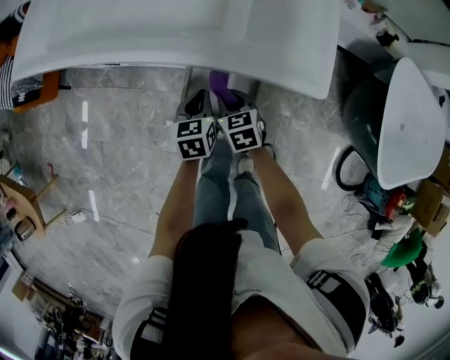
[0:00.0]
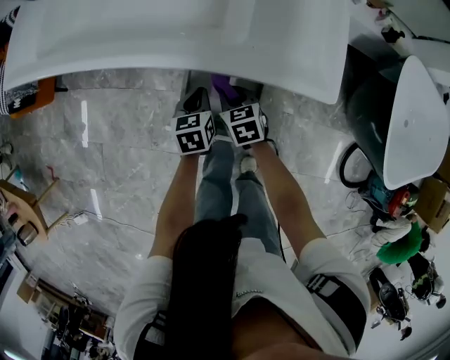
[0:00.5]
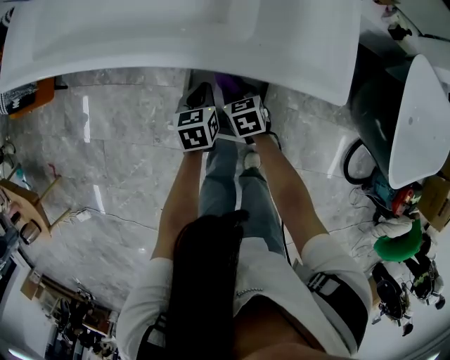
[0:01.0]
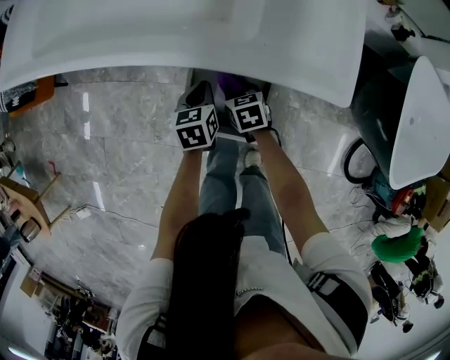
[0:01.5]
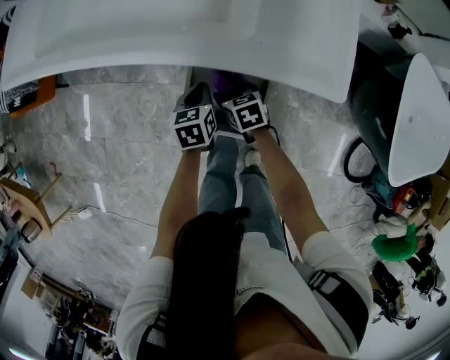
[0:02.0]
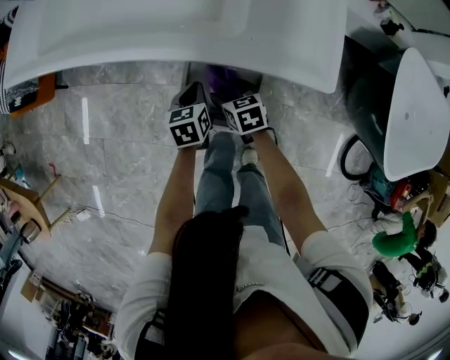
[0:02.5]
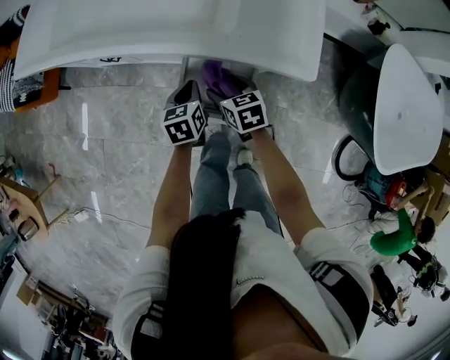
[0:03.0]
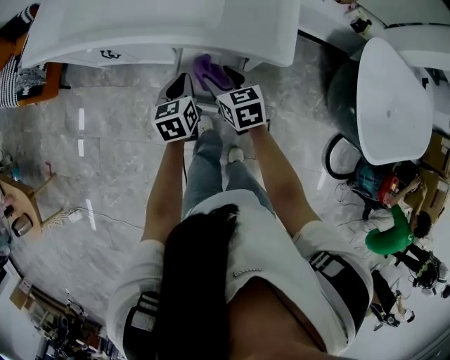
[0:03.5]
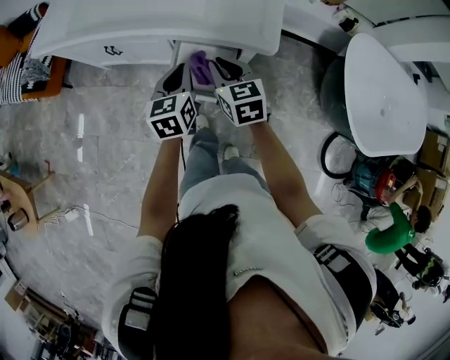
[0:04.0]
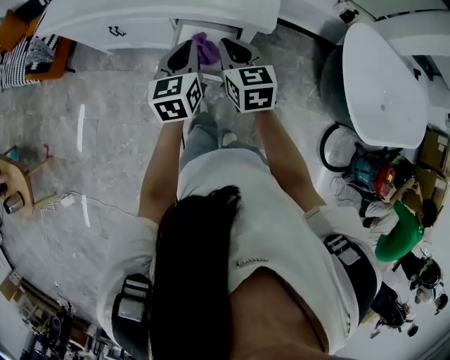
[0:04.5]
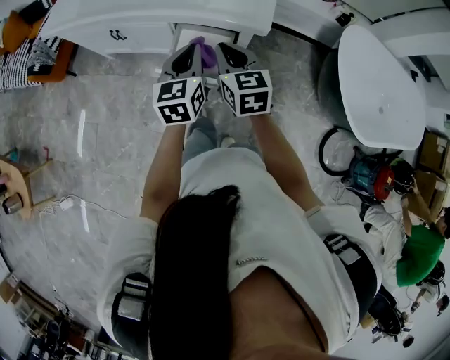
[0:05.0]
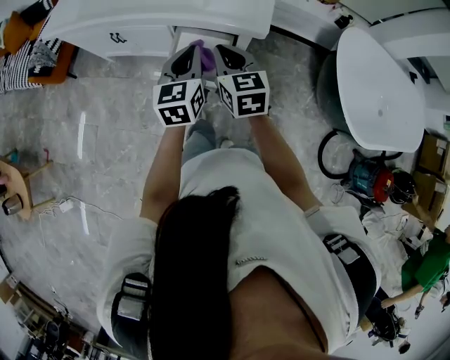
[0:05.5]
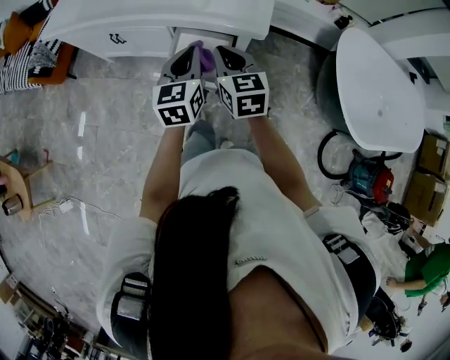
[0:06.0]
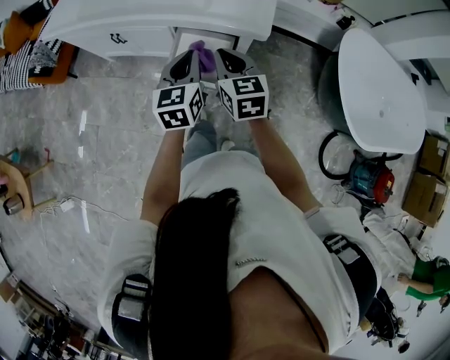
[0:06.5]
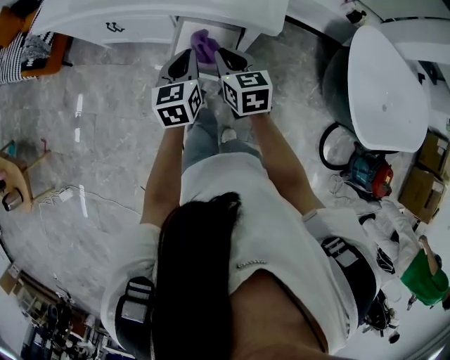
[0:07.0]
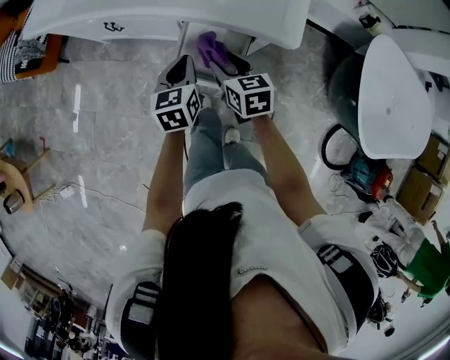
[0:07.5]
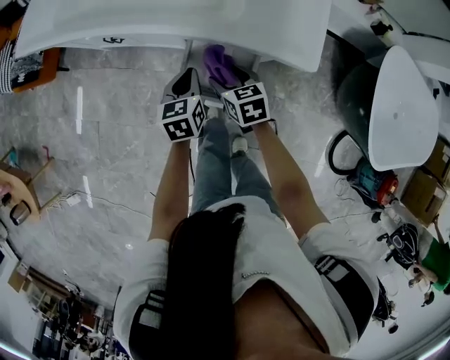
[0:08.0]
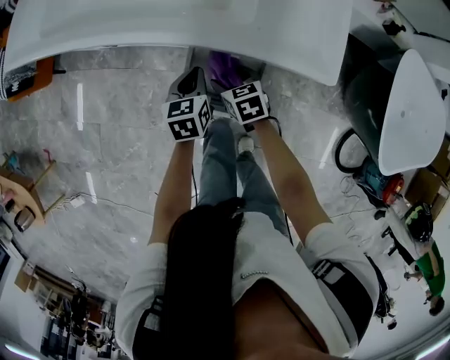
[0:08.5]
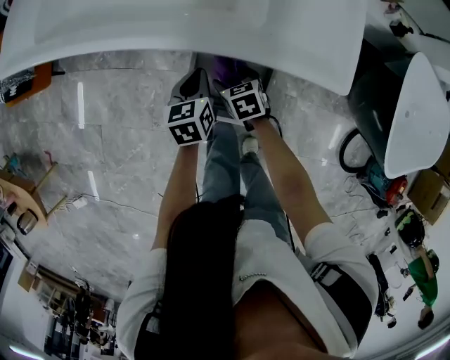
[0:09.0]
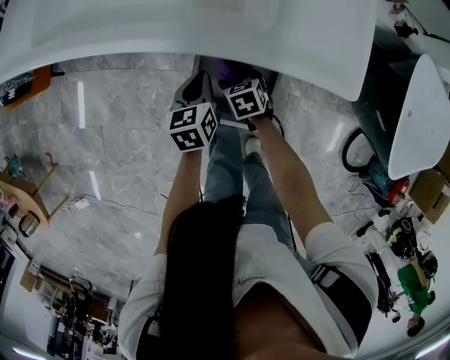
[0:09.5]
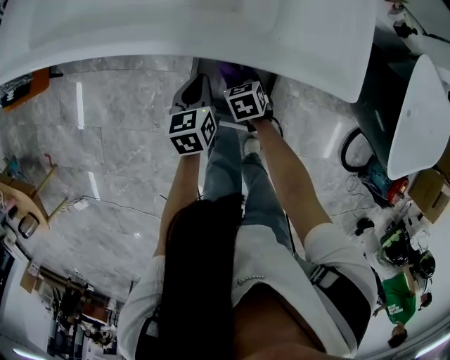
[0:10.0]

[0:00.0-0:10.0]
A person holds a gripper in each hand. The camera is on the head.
0:00.0 to 0:02.0: The two grippers go some 5 cm downward. The right gripper opens.
0:02.0 to 0:04.0: Both grippers move upward, some 30 cm. The left gripper changes its angle by approximately 20 degrees, while the right gripper rotates some 30 degrees, and closes.
0:04.0 to 0:06.0: The grippers both shift upward and backward by some 10 cm.
0:06.0 to 0:08.0: Both grippers move downward and forward, about 25 cm. The right gripper turns by approximately 30 degrees, and opens. The left gripper rotates about 20 degrees.
0:08.0 to 0:10.0: The left gripper goes roughly 10 cm downward; the right gripper shifts approximately 15 cm downward, and closes.

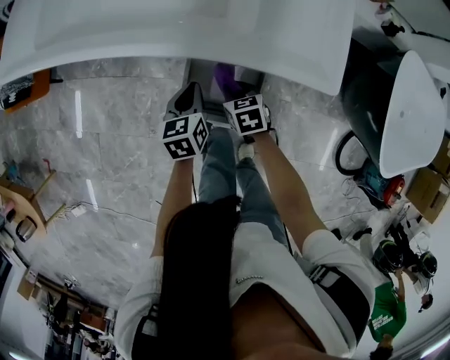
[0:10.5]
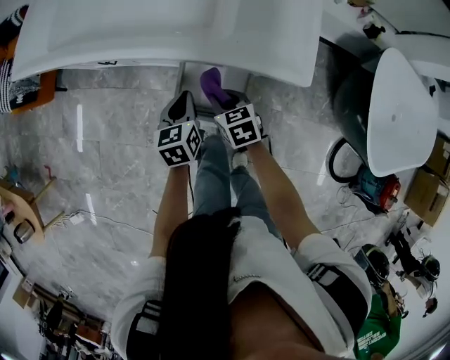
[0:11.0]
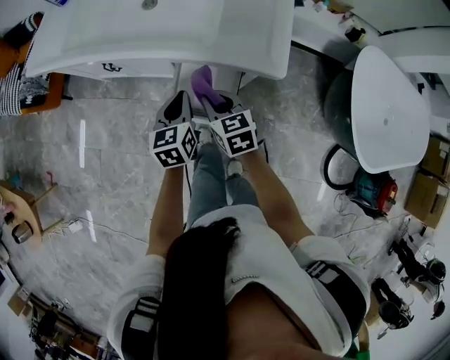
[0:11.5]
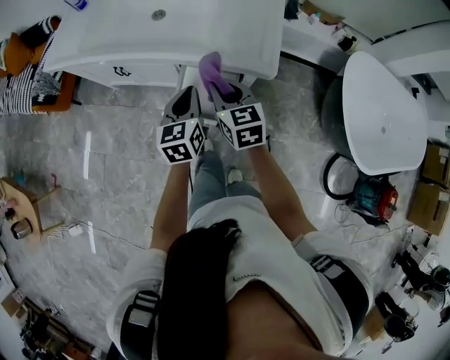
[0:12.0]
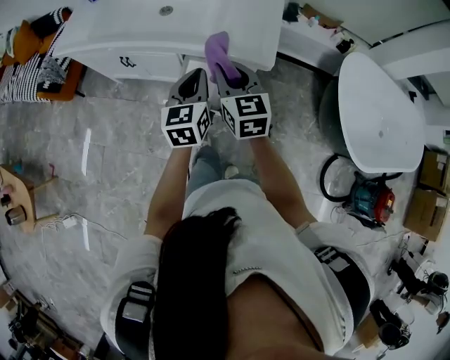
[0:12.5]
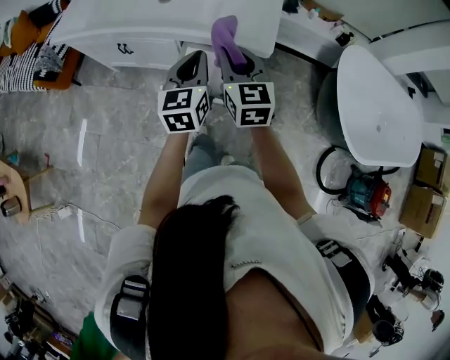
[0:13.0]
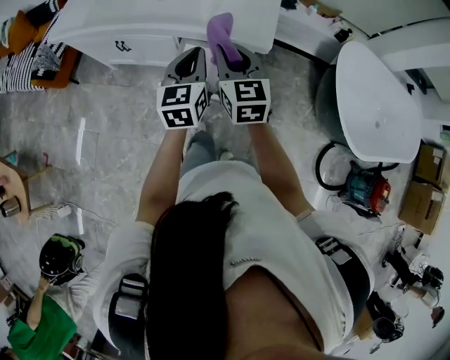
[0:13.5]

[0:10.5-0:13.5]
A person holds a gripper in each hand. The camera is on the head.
0:10.5 to 0:12.0: Both grippers move upward, some 25 cm. The right gripper tilts its fingers roughly 30 degrees upward, while the left gripper turns by roughly 20 degrees.
0:12.0 to 0:13.5: The two grippers go approximately 10 cm upward.

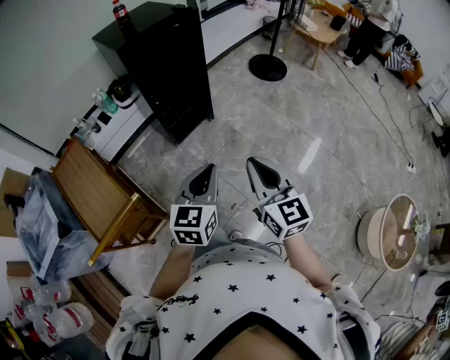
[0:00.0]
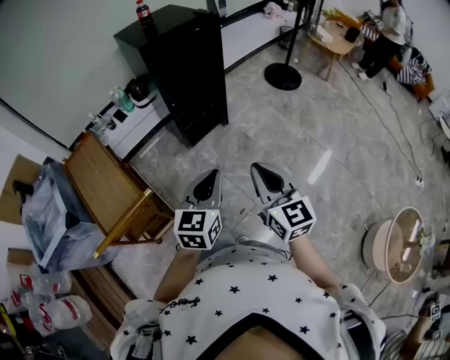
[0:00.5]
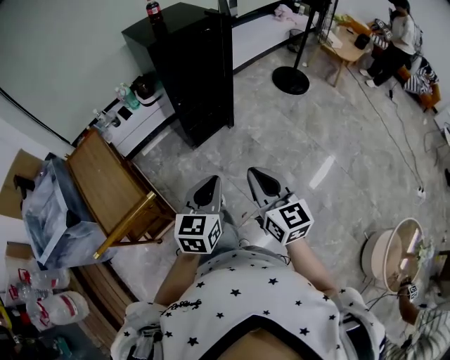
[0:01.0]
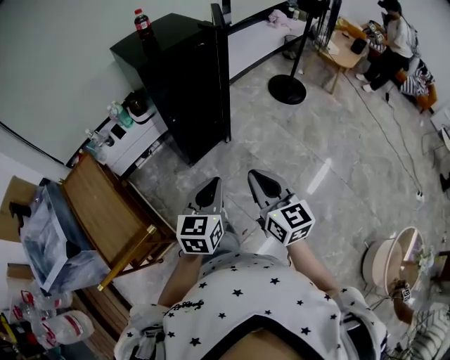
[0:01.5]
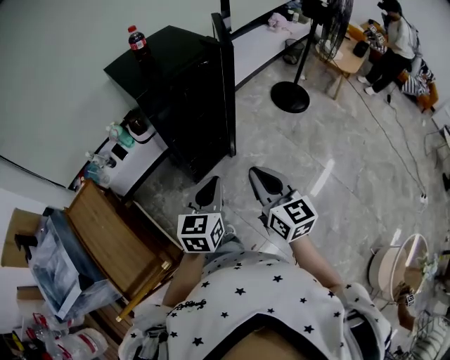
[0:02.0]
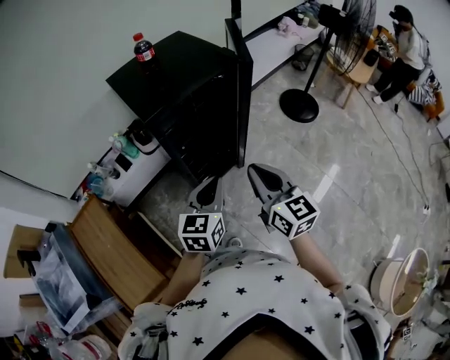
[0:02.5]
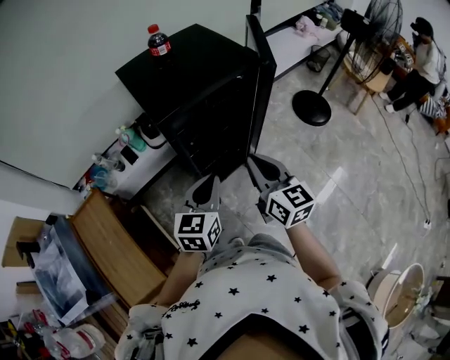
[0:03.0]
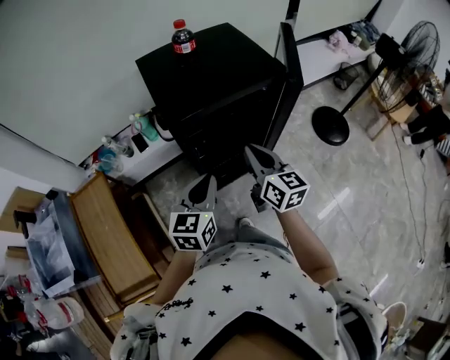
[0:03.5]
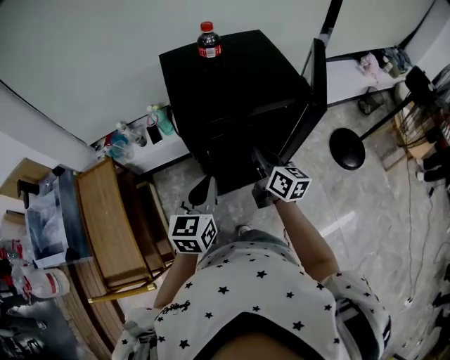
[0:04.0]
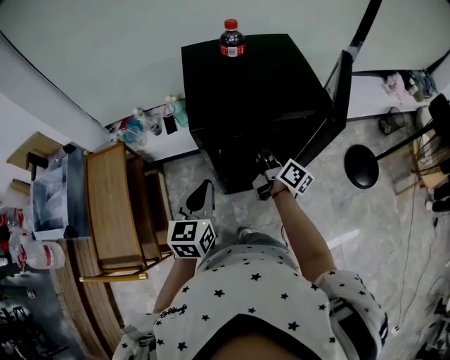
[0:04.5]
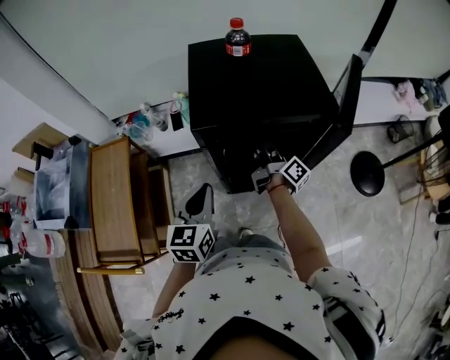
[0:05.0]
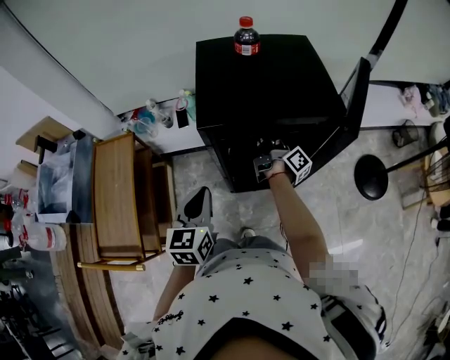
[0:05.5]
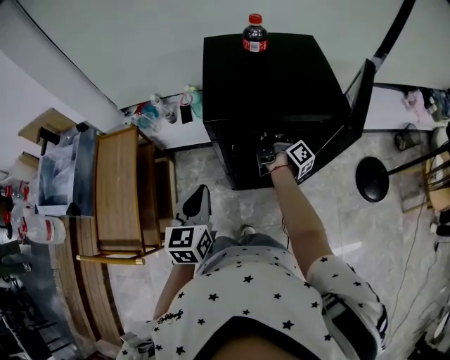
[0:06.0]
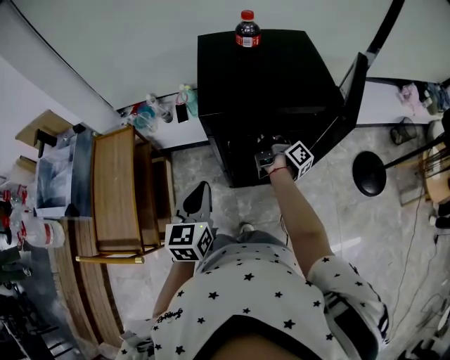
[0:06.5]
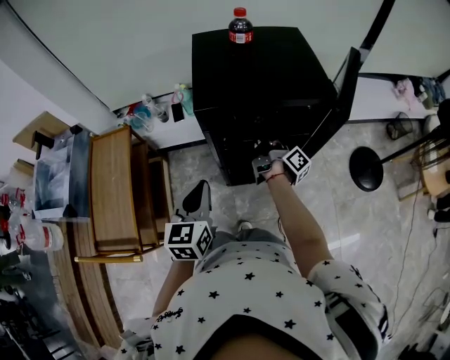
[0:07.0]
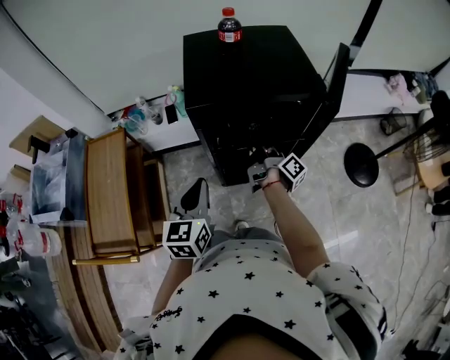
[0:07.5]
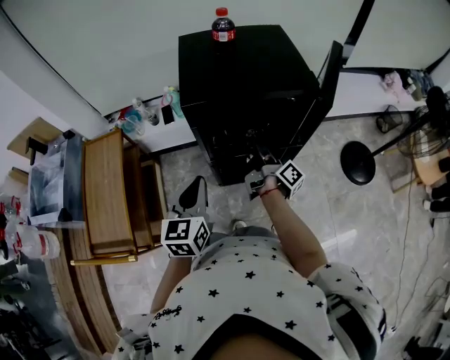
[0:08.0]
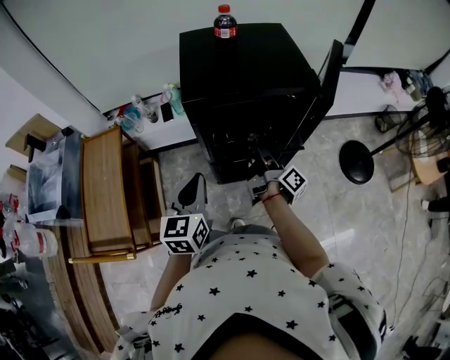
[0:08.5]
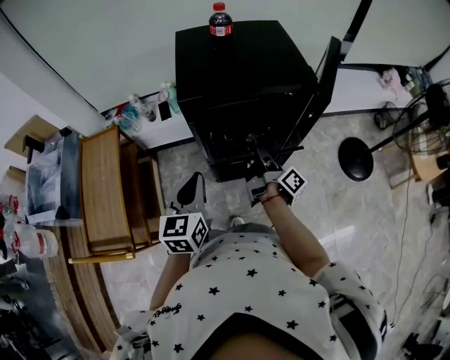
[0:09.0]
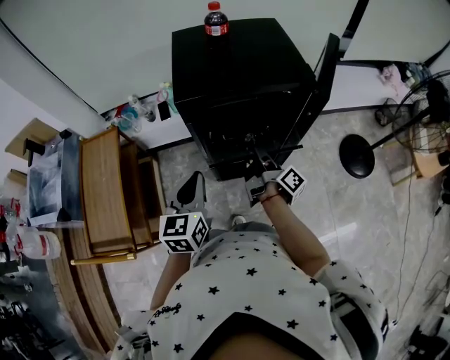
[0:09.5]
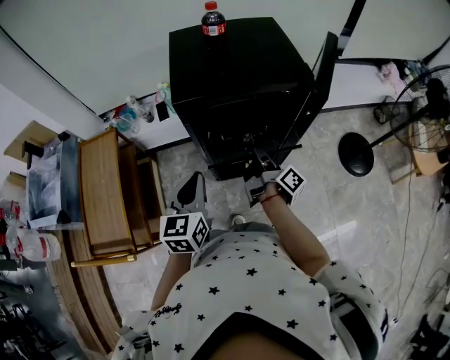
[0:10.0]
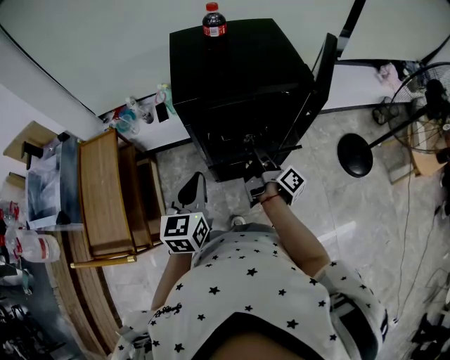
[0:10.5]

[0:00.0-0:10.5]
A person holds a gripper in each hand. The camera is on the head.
0:00.0 to 0:02.0: Both grippers move forward, approximately 25 cm.
0:02.0 to 0:04.0: The right gripper shifts roughly 40 cm forward, and changes its angle by about 30 degrees. Meanwhile the left gripper moves forward, about 25 cm, and changes its angle by about 30 degrees.
0:04.0 to 0:06.5: The right gripper is displaced forward and downward by about 15 cm, and twists about 50 degrees clockwise, seen from behind; the left gripper changes place by roughly 5 cm.
0:06.5 to 0:08.5: The right gripper is displaced backward by about 15 cm.
0:08.5 to 0:10.5: The grippers make only small movements.

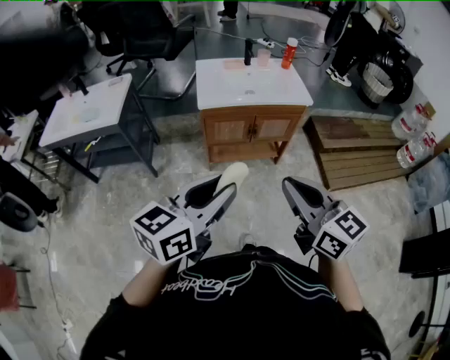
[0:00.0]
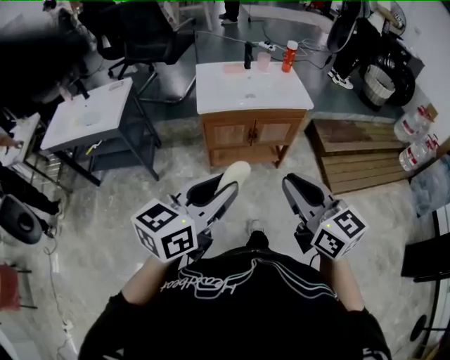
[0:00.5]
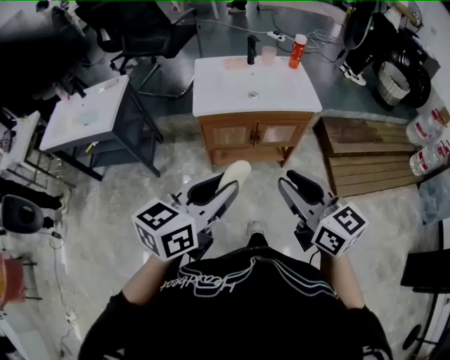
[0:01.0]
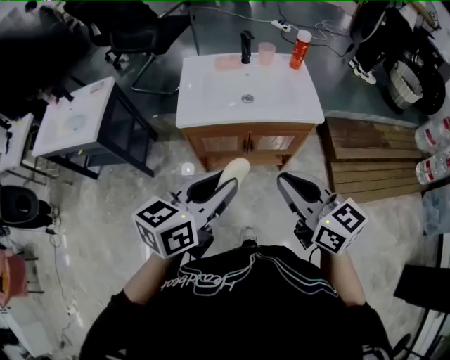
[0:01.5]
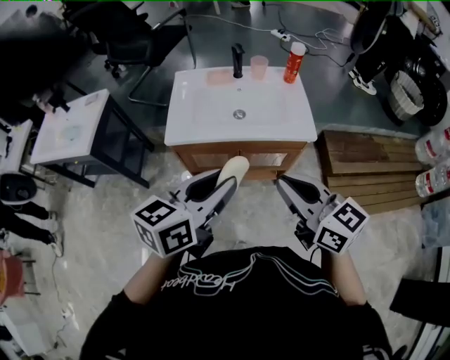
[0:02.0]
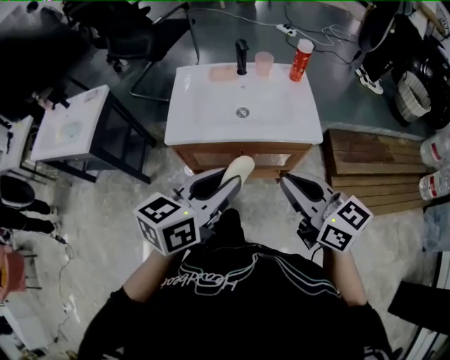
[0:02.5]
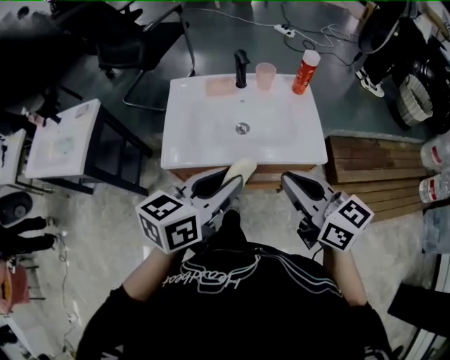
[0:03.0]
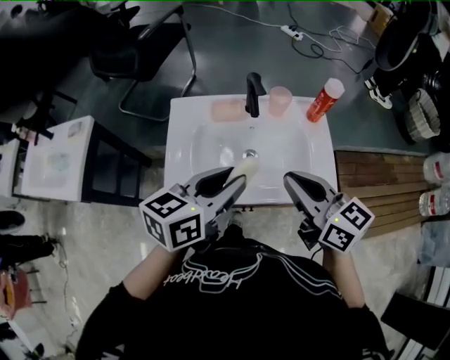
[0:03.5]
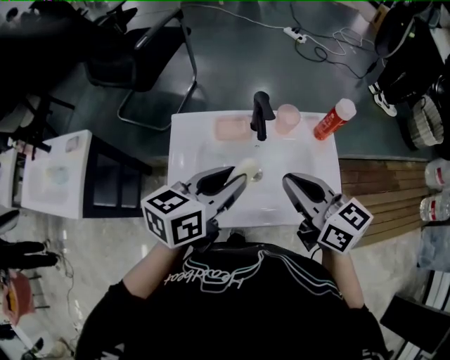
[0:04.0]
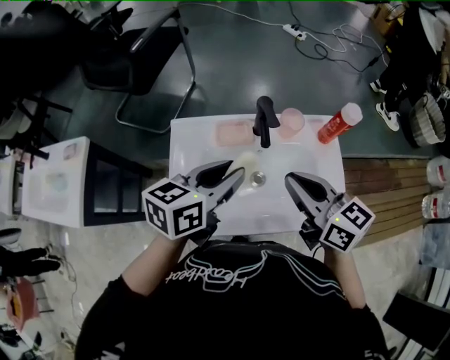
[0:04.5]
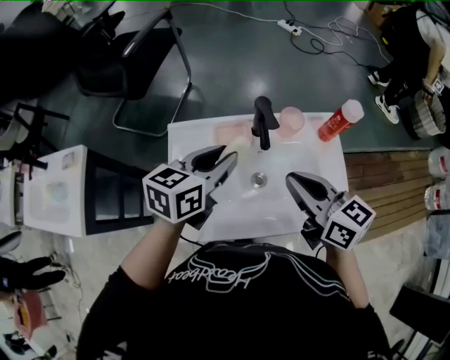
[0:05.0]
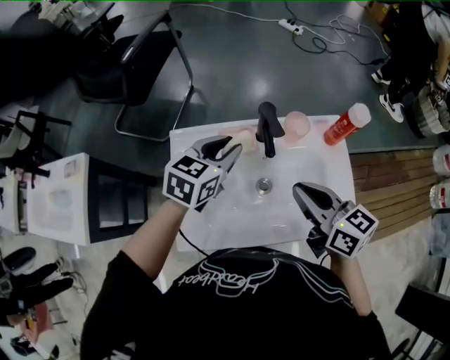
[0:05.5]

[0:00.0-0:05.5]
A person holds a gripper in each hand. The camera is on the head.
0:00.0 to 0:02.0: Both grippers move forward and to the right, roughly 35 cm. The right gripper opens and closes again.
0:02.0 to 0:03.5: Both grippers travel together forward, some 30 cm.
0:03.5 to 0:05.5: The left gripper travels forward and downward by about 25 cm, and turns by roughly 30 degrees. Meanwhile the right gripper heads forward and downward, covering some 15 cm.
